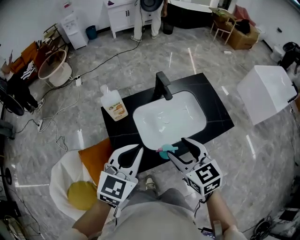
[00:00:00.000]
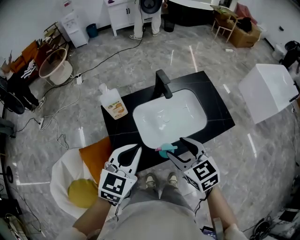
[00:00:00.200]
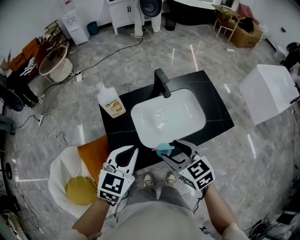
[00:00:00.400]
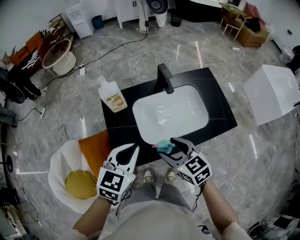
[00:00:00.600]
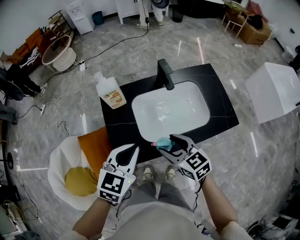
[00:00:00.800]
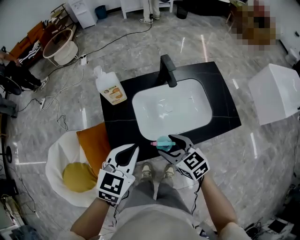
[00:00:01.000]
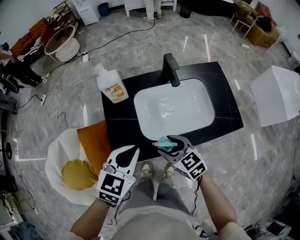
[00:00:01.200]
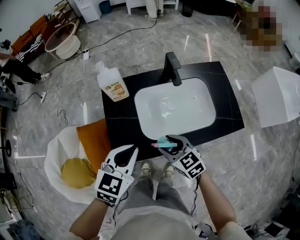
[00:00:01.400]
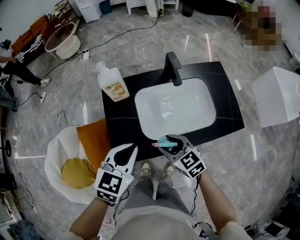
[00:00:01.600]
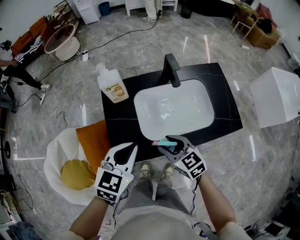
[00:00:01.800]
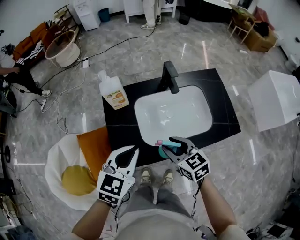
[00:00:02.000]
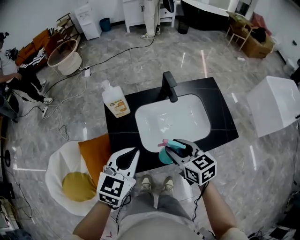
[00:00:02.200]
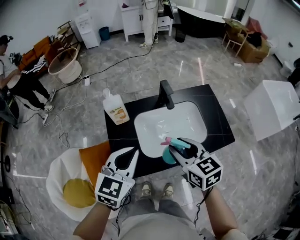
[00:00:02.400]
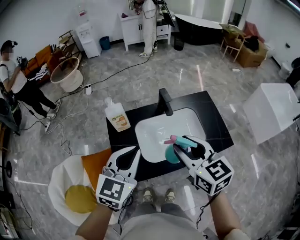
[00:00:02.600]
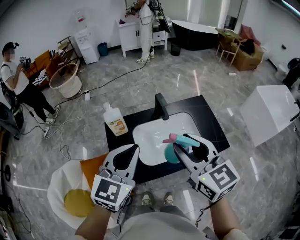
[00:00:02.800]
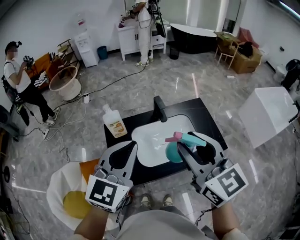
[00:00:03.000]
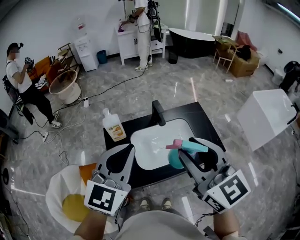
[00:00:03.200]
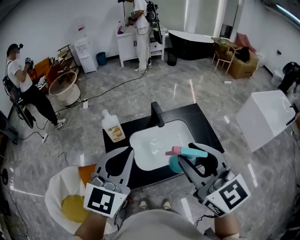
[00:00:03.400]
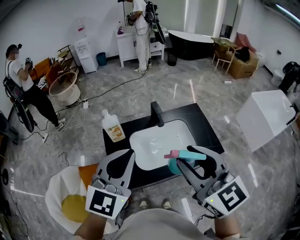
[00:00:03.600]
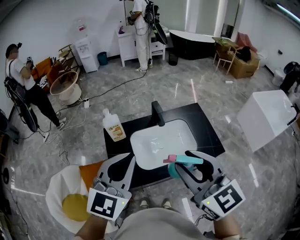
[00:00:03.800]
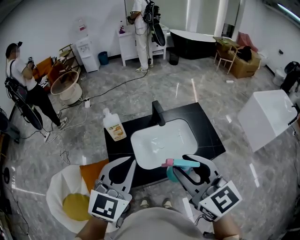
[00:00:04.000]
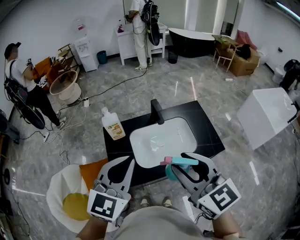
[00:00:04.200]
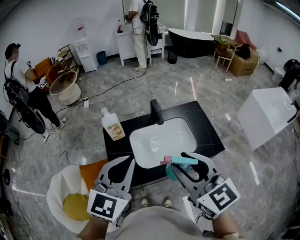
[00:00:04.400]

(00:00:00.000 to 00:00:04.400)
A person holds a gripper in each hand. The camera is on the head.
00:00:00.000 - 00:00:01.400: The right gripper goes some 15 cm downward, and rotates approximately 20 degrees, while the left gripper moves downward, about 10 cm.
00:00:01.400 - 00:00:03.000: The left gripper moves upward, about 25 cm, and changes its angle by some 30 degrees, while the right gripper is displaced upward by roughly 35 cm, and angles its fingers upward, by approximately 30 degrees.
00:00:03.000 - 00:00:04.400: The right gripper is displaced backward by some 5 cm.

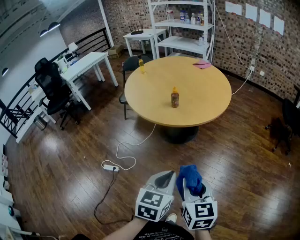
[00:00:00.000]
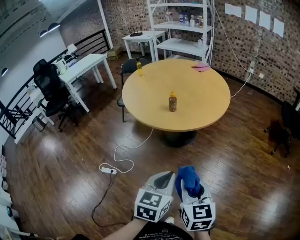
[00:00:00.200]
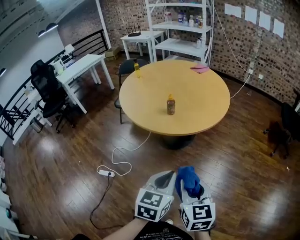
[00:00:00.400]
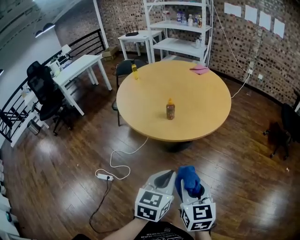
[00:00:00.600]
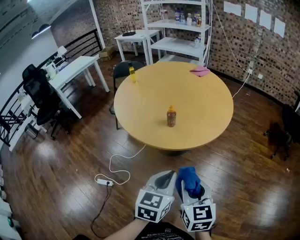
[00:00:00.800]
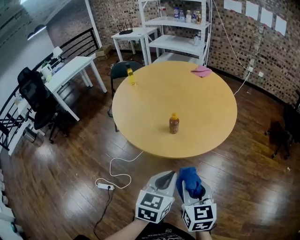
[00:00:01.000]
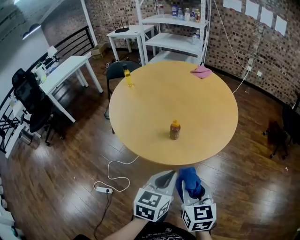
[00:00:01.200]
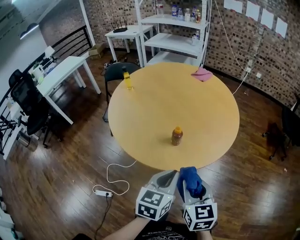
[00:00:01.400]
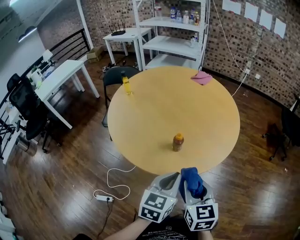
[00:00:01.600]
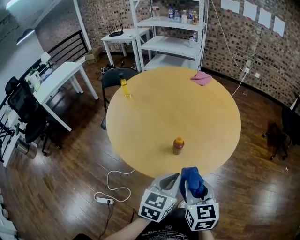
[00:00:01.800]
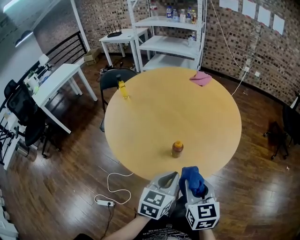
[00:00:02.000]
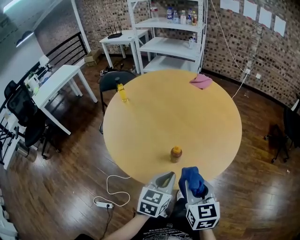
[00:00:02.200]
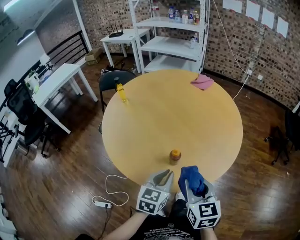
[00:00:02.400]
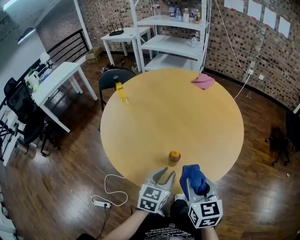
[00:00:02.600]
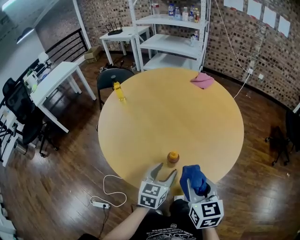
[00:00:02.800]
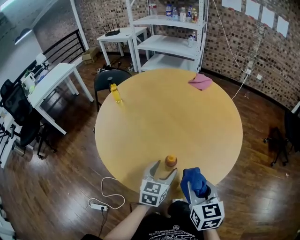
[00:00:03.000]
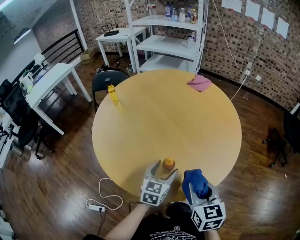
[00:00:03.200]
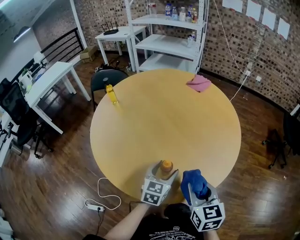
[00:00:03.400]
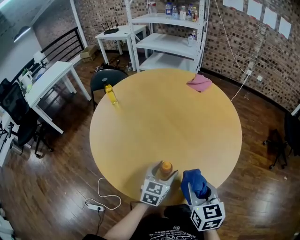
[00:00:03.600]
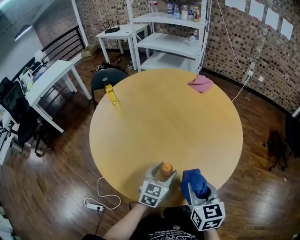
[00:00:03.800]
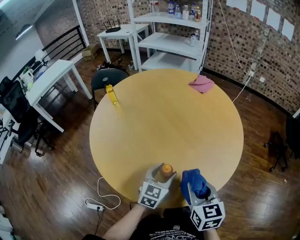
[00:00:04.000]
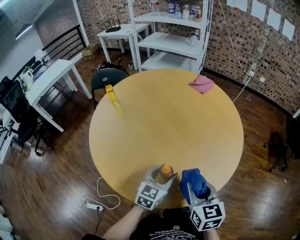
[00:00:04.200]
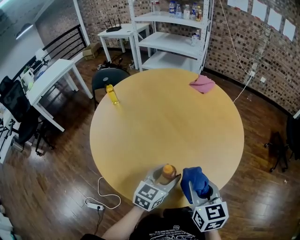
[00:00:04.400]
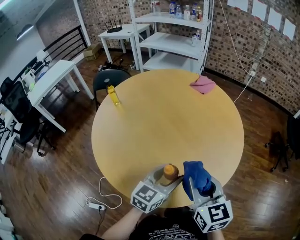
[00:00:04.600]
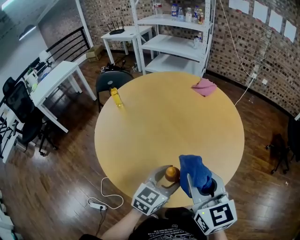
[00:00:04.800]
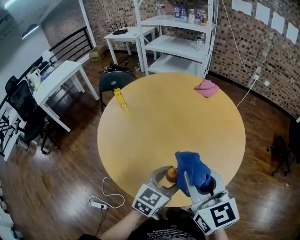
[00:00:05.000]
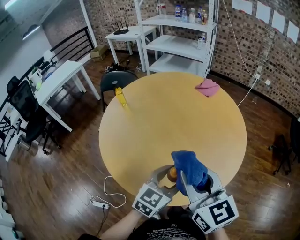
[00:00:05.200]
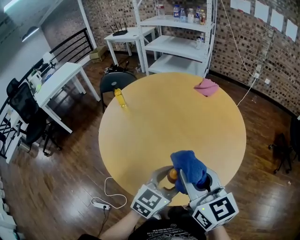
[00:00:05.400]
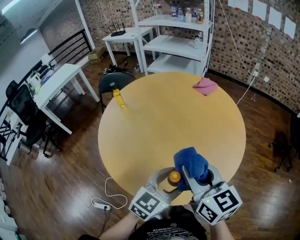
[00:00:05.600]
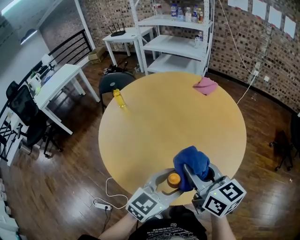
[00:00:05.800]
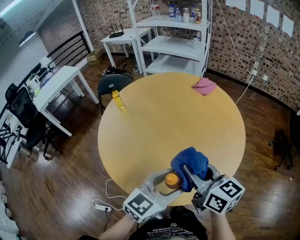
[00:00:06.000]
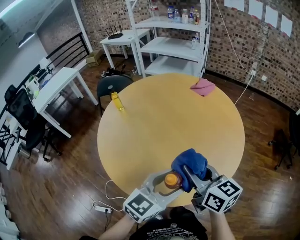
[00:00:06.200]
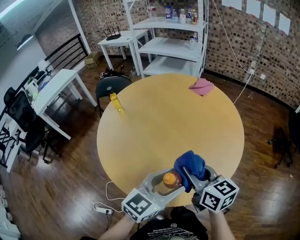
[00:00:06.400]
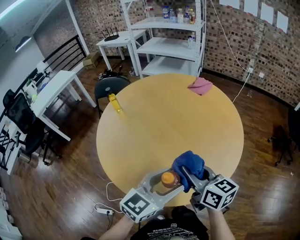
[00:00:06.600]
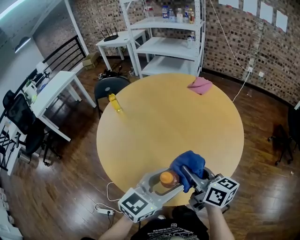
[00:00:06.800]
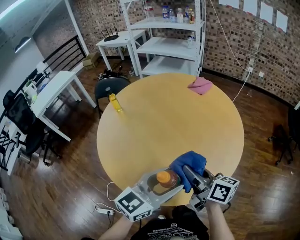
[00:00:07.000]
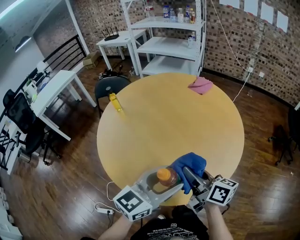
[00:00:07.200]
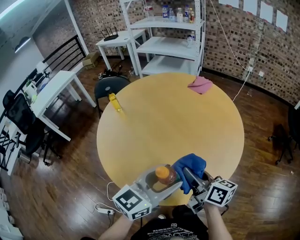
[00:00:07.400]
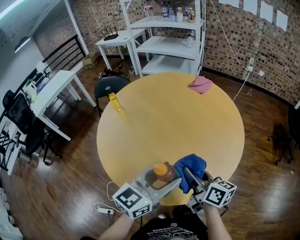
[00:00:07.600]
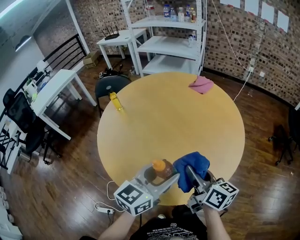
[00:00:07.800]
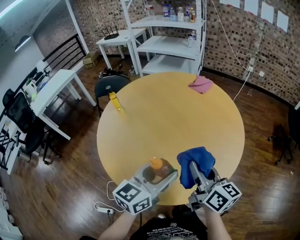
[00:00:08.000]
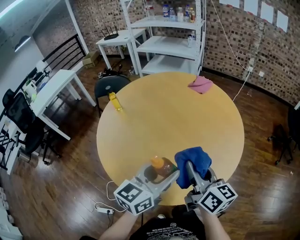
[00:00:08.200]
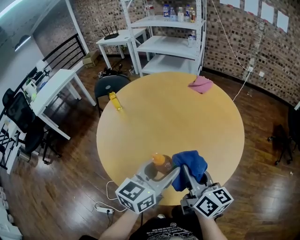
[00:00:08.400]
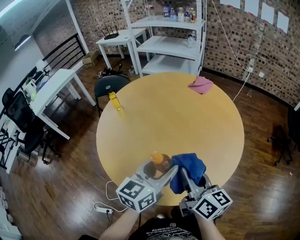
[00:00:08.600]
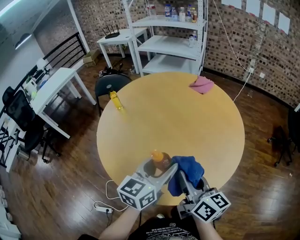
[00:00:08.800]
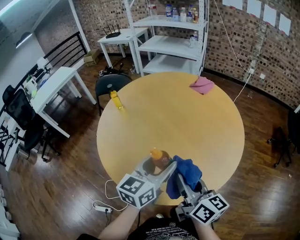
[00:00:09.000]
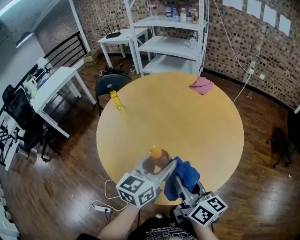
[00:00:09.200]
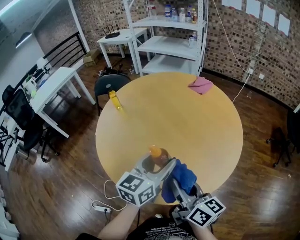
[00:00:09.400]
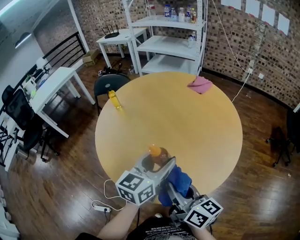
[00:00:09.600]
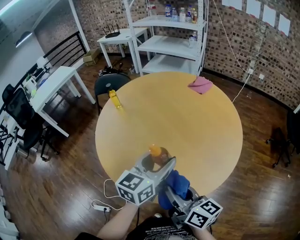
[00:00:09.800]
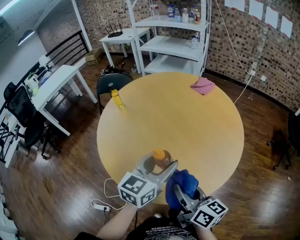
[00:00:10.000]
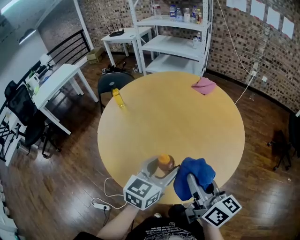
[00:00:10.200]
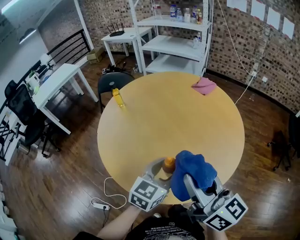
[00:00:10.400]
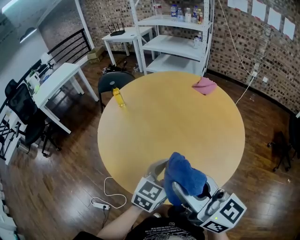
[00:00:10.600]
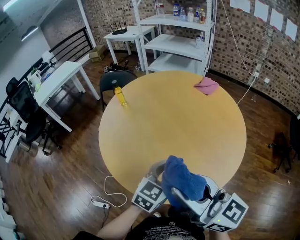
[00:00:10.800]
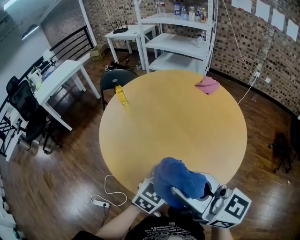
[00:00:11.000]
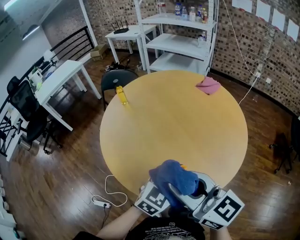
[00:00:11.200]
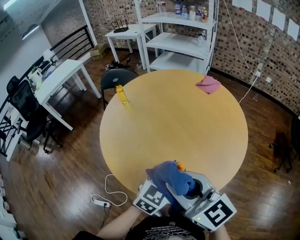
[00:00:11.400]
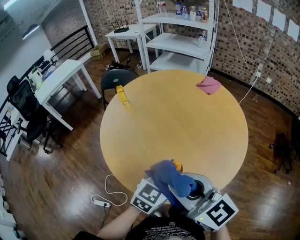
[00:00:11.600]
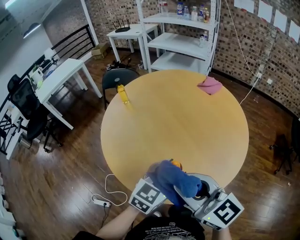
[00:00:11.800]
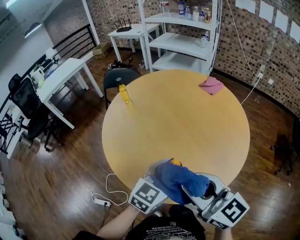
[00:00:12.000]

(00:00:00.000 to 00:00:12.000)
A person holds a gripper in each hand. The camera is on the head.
00:00:00.000 - 00:00:01.600: Both grippers move forward, about 35 cm.
00:00:01.600 - 00:00:03.000: The right gripper travels forward by about 10 cm, while the left gripper shifts some 20 cm forward and downward, and opens its fingers.
00:00:03.000 - 00:00:04.400: The left gripper changes place by roughly 5 cm. The right gripper heads forward, covering about 5 cm.
00:00:04.400 - 00:00:06.000: The right gripper travels upward and to the left by some 10 cm, and swivels roughly 30 degrees; the left gripper goes about 15 cm upward and backward.
00:00:06.000 - 00:00:07.600: The right gripper goes roughly 10 cm downward, and changes its angle by roughly 20 degrees.
00:00:07.600 - 00:00:09.000: The right gripper changes place by some 5 cm, while the left gripper ends up roughly 5 cm from where it was.
00:00:09.000 - 00:00:10.400: The right gripper goes about 10 cm upward. Meanwhile the left gripper ends up about 5 cm from where it was.
00:00:10.400 - 00:00:12.000: The right gripper turns by about 20 degrees.

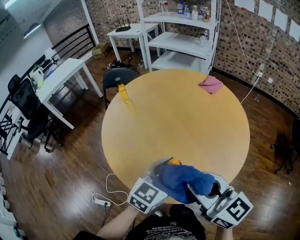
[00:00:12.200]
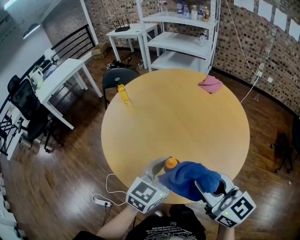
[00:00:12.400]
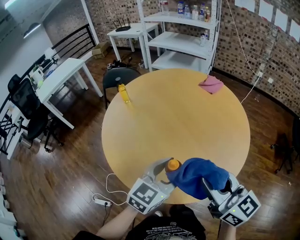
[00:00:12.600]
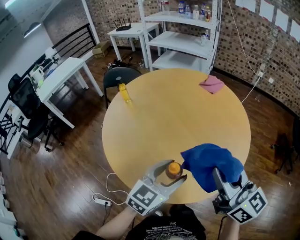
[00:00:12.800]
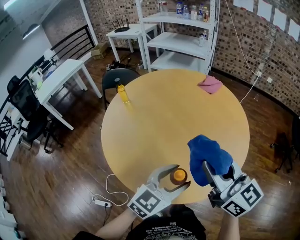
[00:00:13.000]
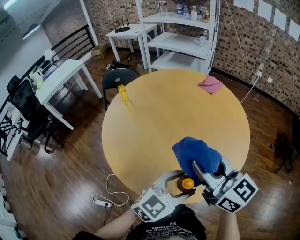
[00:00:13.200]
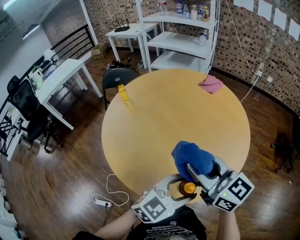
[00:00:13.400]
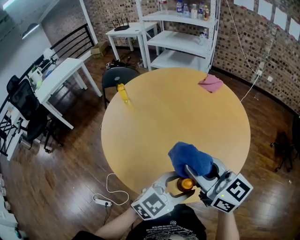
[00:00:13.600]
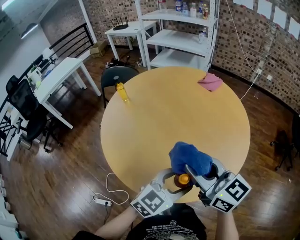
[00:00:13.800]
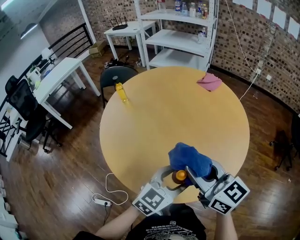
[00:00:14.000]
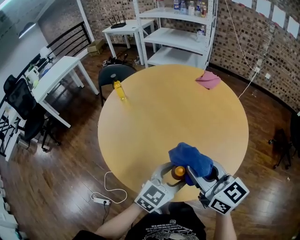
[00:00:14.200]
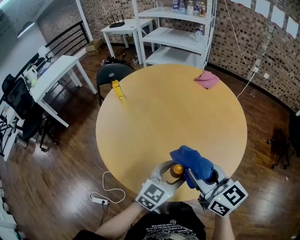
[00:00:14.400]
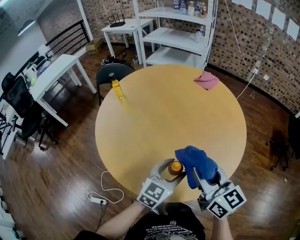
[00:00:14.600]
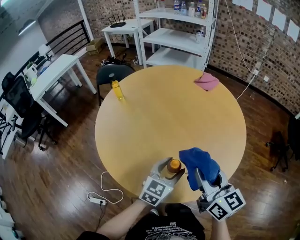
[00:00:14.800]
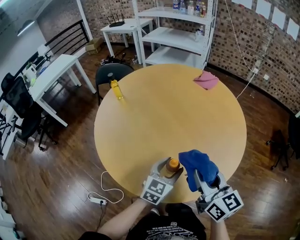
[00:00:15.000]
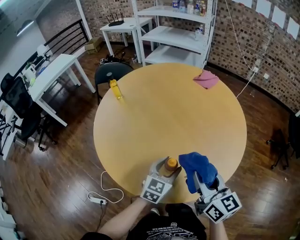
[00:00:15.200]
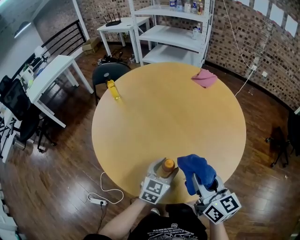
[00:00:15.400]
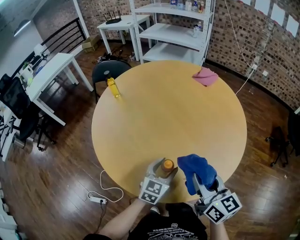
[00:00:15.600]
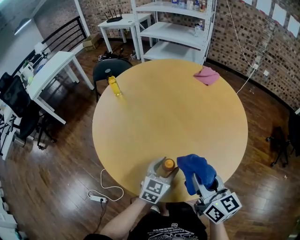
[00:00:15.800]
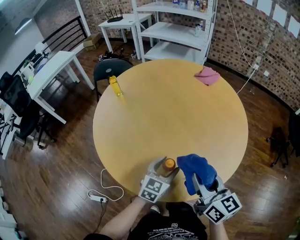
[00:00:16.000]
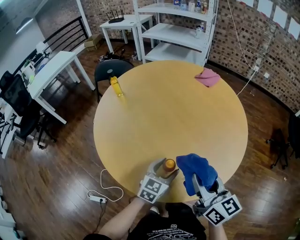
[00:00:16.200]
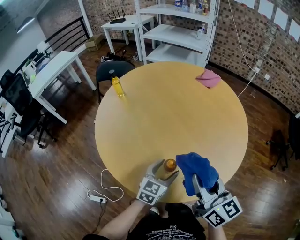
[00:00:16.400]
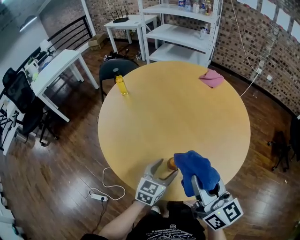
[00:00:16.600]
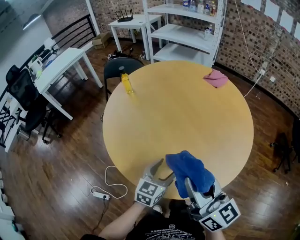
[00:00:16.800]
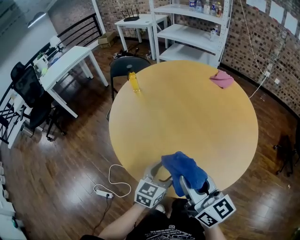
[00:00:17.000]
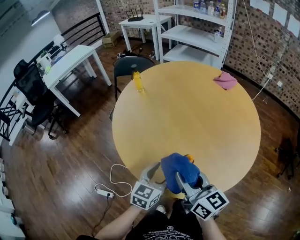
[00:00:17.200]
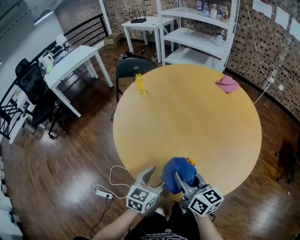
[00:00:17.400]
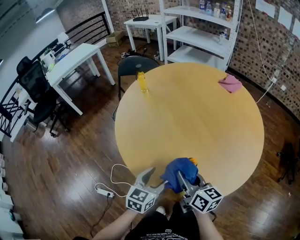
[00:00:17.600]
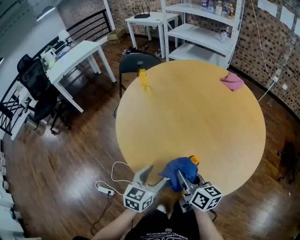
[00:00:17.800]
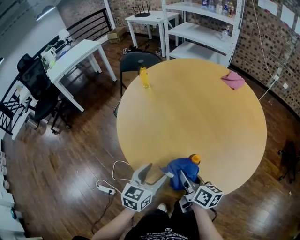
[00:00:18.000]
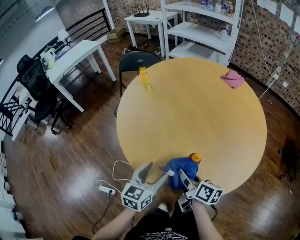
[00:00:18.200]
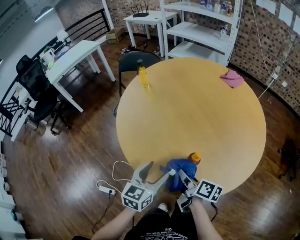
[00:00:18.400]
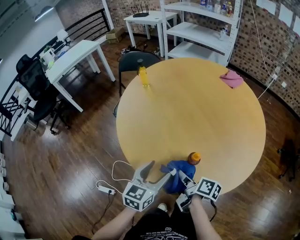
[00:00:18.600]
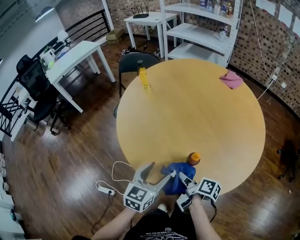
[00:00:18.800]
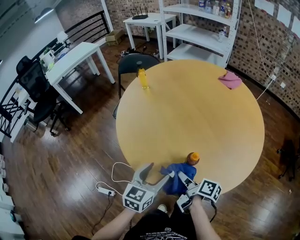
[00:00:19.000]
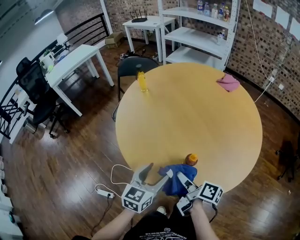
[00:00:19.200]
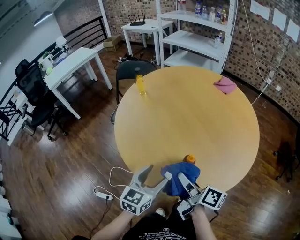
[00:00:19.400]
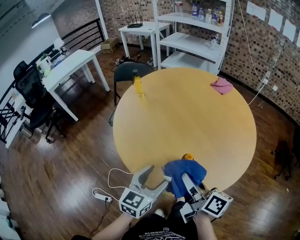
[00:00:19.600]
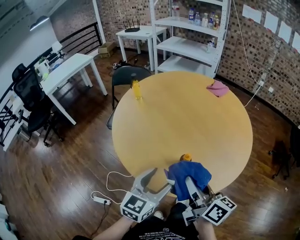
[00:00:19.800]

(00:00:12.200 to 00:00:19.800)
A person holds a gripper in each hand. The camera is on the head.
00:00:12.200 - 00:00:13.800: The right gripper shifts about 5 cm forward, and reaches roughly 5 cm to the right, then returns.
00:00:13.800 - 00:00:15.200: The left gripper shifts roughly 15 cm downward and forward, and turns by about 20 degrees; the right gripper is displaced downward and to the right by approximately 10 cm, and turns by some 20 degrees.
00:00:15.200 - 00:00:16.800: The left gripper travels to the left by roughly 5 cm. The right gripper is displaced to the left and upward by roughly 10 cm.
00:00:16.800 - 00:00:18.200: The right gripper is displaced downward by approximately 20 cm, and swivels about 40 degrees. Meanwhile the left gripper goes roughly 10 cm to the left.
00:00:18.200 - 00:00:19.800: The left gripper shifts about 10 cm upward, while the right gripper goes some 15 cm upward, and rotates some 20 degrees.
